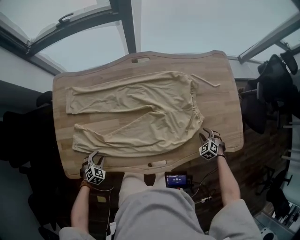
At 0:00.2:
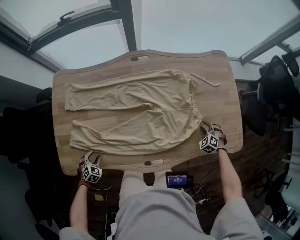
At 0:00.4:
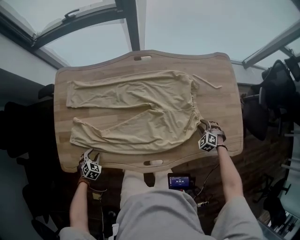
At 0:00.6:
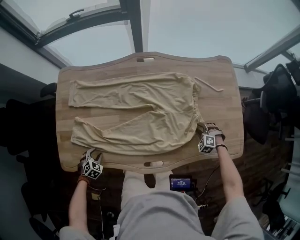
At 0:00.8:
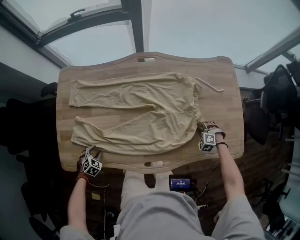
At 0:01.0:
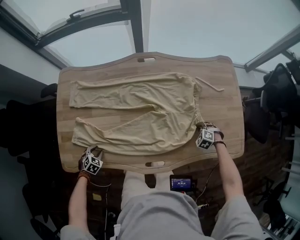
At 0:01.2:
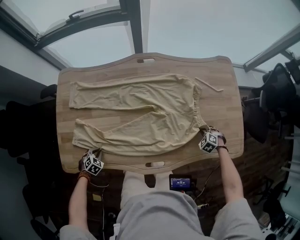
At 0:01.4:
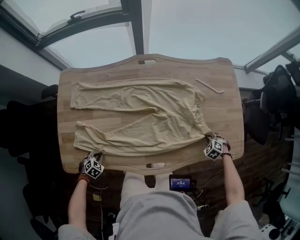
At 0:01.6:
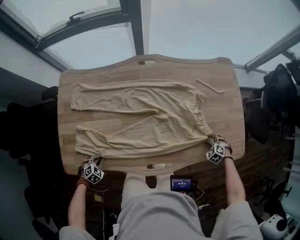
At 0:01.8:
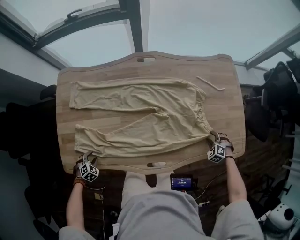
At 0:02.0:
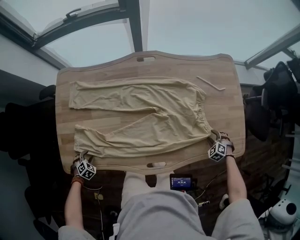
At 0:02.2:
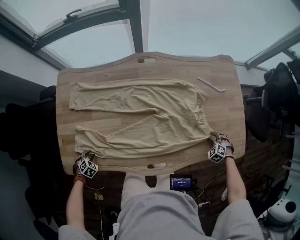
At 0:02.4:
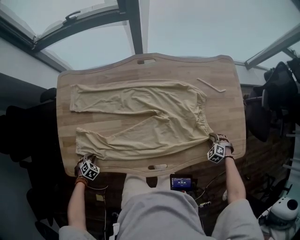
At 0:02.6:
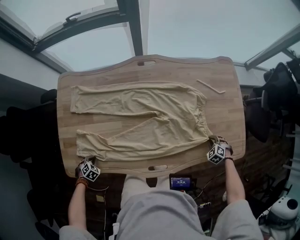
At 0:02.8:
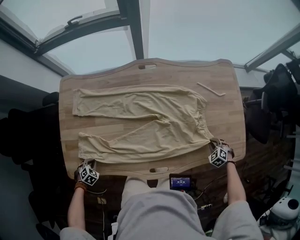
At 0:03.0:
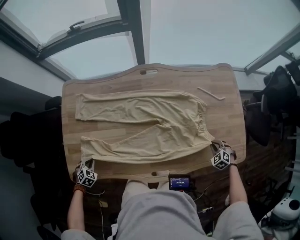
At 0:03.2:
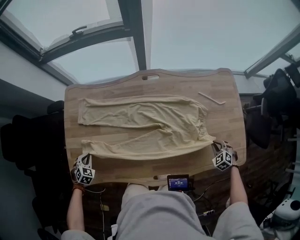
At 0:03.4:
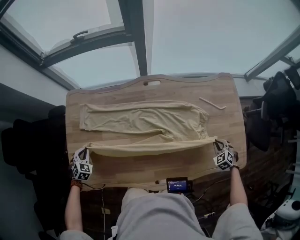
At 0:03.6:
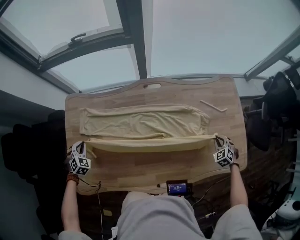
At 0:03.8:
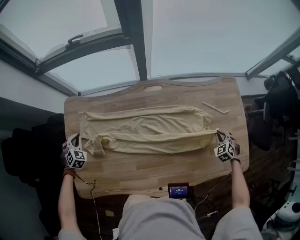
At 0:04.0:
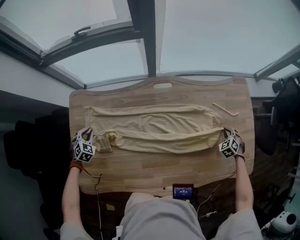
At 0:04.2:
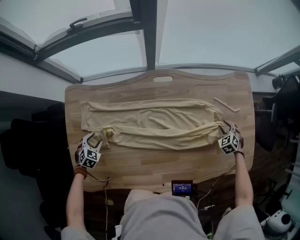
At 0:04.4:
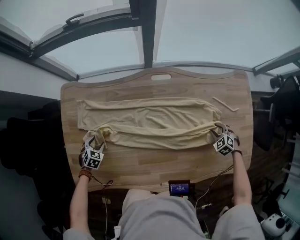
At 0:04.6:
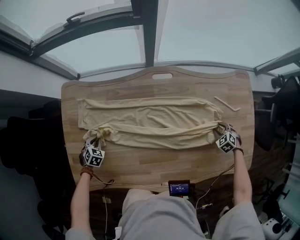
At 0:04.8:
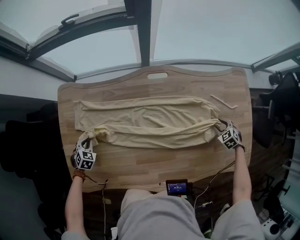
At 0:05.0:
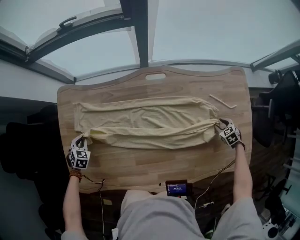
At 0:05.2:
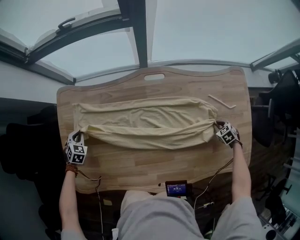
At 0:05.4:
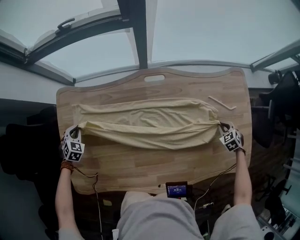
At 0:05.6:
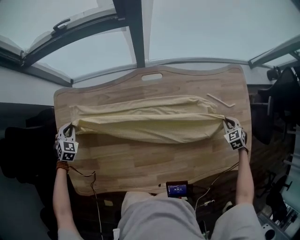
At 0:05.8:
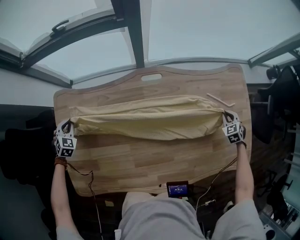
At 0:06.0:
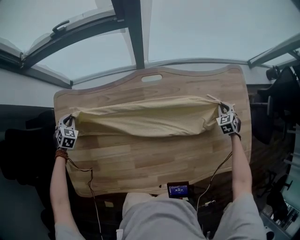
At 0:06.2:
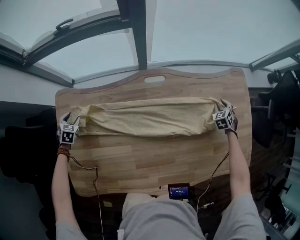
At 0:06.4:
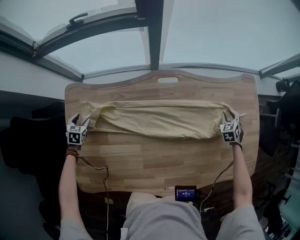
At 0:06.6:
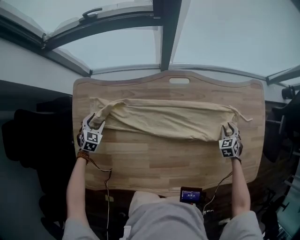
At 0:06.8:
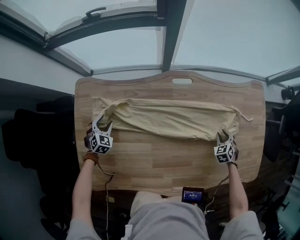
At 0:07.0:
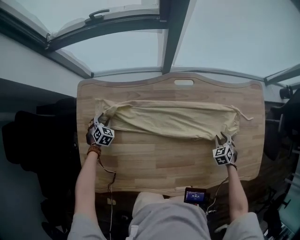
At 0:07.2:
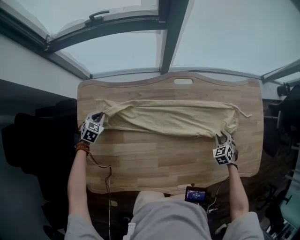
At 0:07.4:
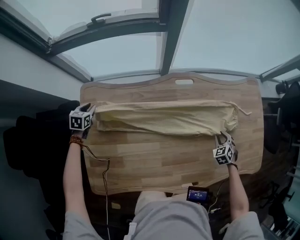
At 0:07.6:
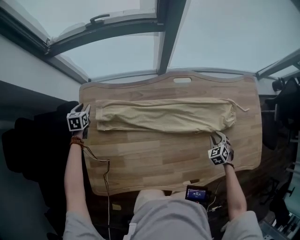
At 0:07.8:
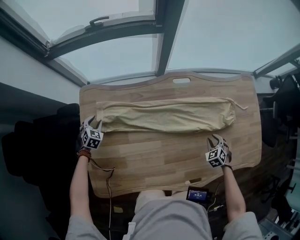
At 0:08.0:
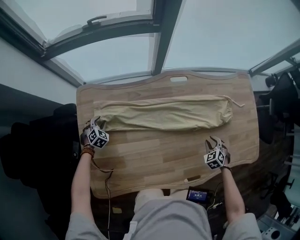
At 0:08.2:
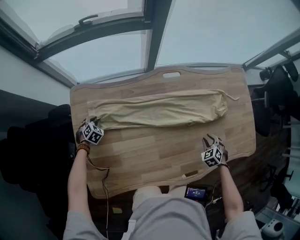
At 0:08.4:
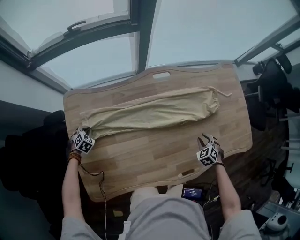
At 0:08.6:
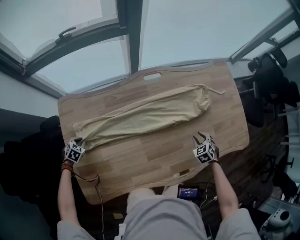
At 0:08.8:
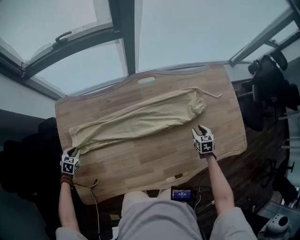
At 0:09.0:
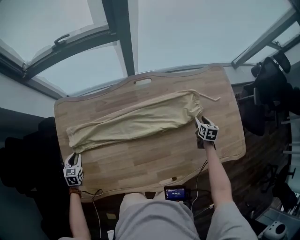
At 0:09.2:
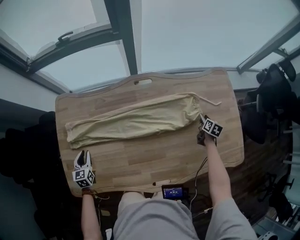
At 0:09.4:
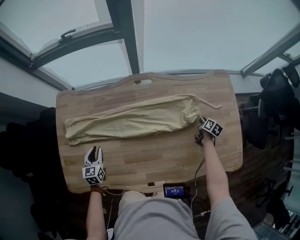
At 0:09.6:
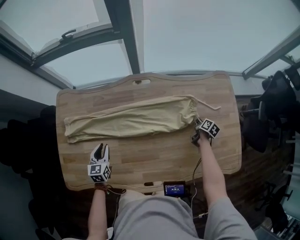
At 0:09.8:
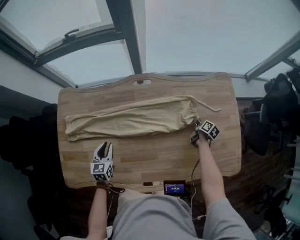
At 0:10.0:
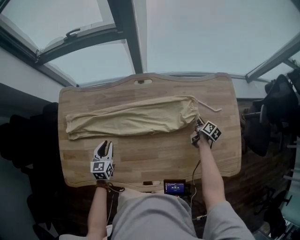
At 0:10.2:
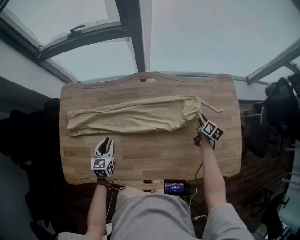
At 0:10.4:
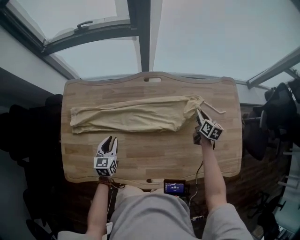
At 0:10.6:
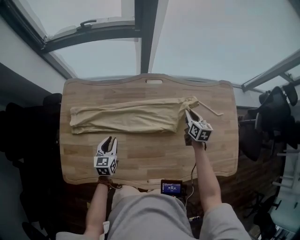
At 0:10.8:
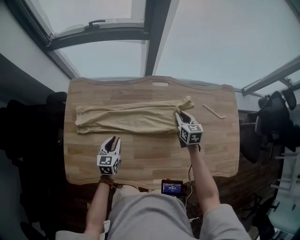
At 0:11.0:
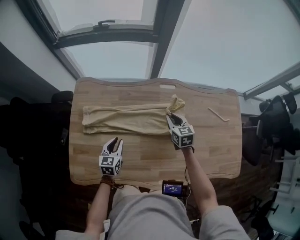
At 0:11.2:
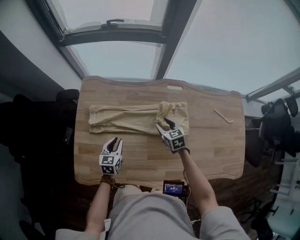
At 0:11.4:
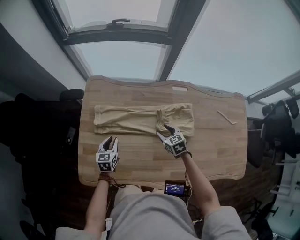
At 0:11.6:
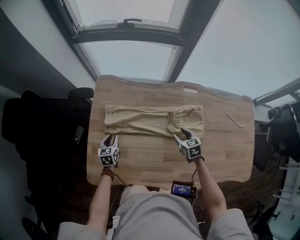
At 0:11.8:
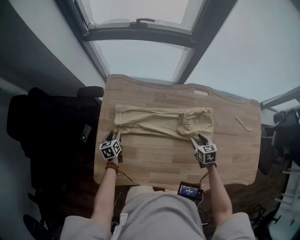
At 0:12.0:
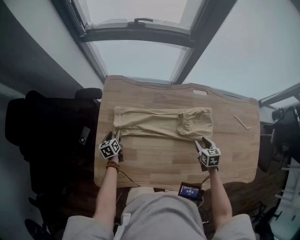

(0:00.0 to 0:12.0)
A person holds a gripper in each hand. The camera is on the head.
0:00.0 - 0:01.6: The left gripper closes, while the right gripper closes and opens again.
0:01.6 - 0:03.0: The right gripper is displaced upward by approximately 5 cm, and closes its fingers, while the left gripper ends up roughly 10 cm from where it was, and opens and closes again.
0:03.0 - 0:04.4: Both grippers move forward, about 20 cm. The right gripper opens its fingers. Meanwhile the left gripper opens.
0:04.4 - 0:06.0: The right gripper moves some 15 cm, swivels some 30 degrees, and closes its fingers. Meanwhile the left gripper ends up approximately 20 cm from where it was, and closes its fingers.
0:06.0 - 0:07.6: The left gripper moves to the left, approximately 15 cm, turns by approximately 40 degrees, and opens up; the right gripper travels to the left and backward by roughly 25 cm, and opens its fingers.
0:07.6 - 0:09.0: The right gripper is displaced to the right and forward by about 15 cm, and rolls clockwise, seen from behind, by some 60 degrees. The left gripper travels backward and to the right by about 25 cm.
0:09.0 - 0:10.4: The right gripper shifts approximately 10 cm forward and upward, turns by approximately 20 degrees, and closes; the left gripper moves to the right, approximately 25 cm, and rotates some 20 degrees.
0:10.4 - 0:12.0: Both grippers travel together to the left, about 35 cm. The right gripper changes its angle by roughly 40 degrees, and opens. Meanwhile the left gripper turns by about 30 degrees, and opens its fingers.

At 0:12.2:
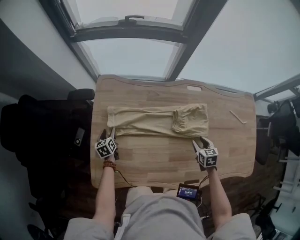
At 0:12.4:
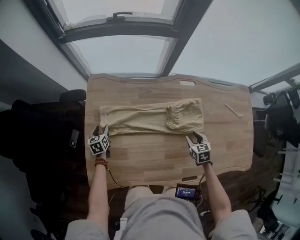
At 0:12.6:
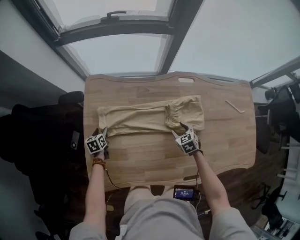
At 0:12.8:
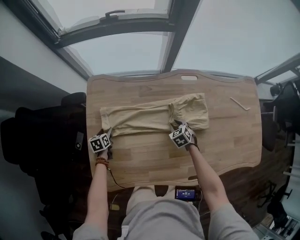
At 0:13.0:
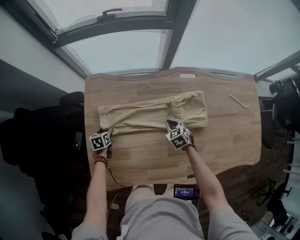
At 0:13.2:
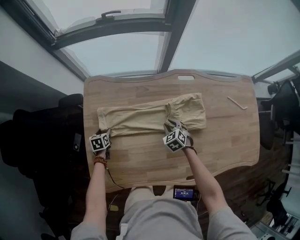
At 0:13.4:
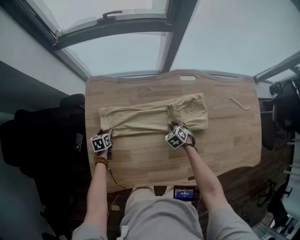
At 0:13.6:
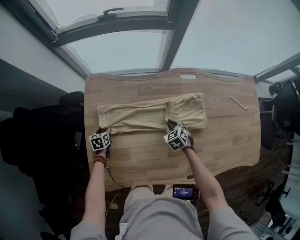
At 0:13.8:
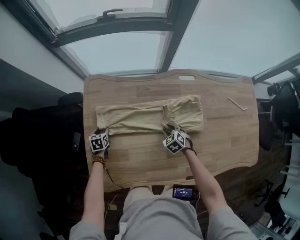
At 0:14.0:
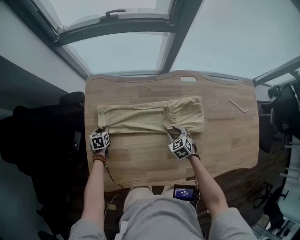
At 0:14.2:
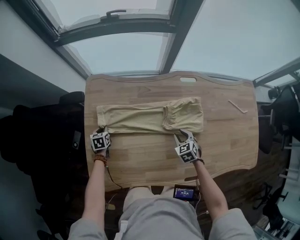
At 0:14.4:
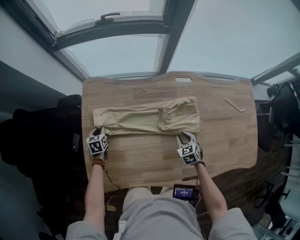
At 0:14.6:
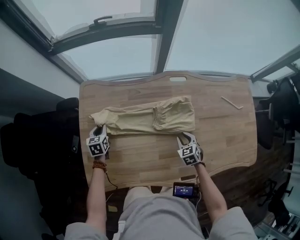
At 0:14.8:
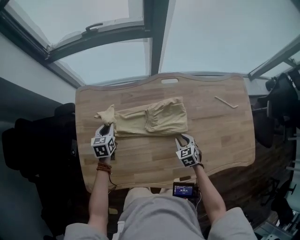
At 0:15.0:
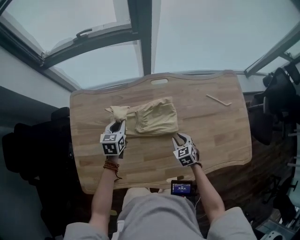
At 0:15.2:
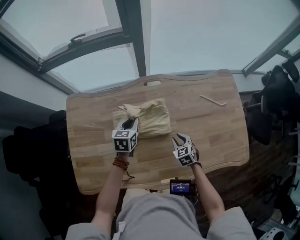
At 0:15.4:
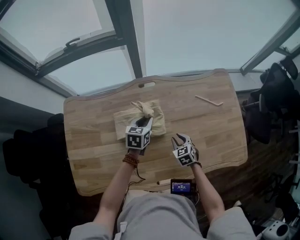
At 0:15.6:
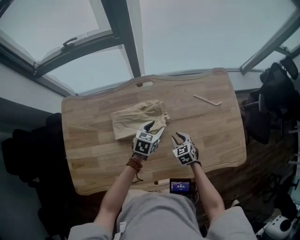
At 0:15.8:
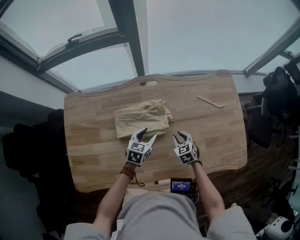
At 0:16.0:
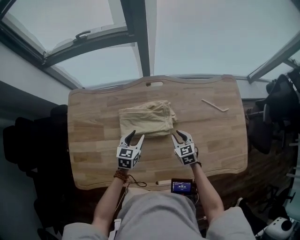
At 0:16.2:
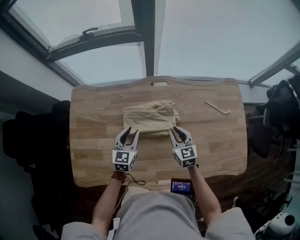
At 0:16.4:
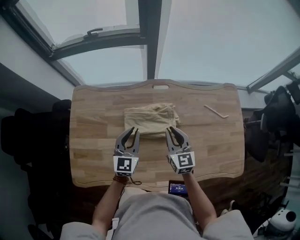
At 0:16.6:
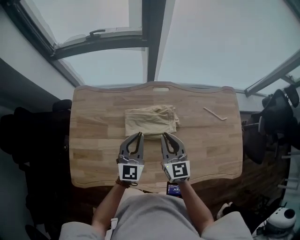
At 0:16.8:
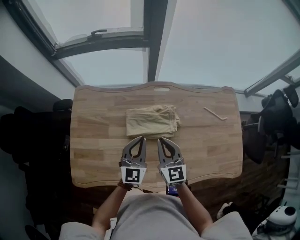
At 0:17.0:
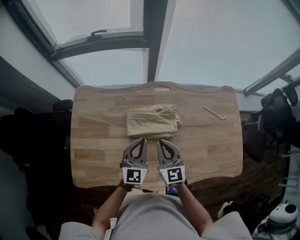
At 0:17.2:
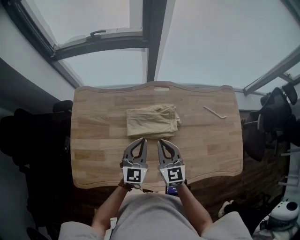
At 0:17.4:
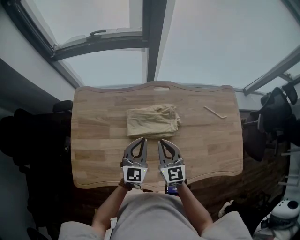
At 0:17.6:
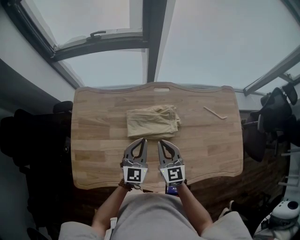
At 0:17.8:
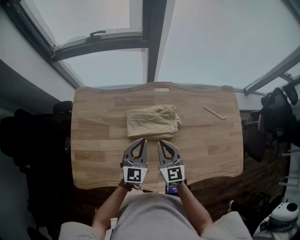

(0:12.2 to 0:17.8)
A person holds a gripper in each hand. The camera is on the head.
0:12.2 - 0:13.6: The left gripper turns by approximately 20 degrees. Meanwhile the right gripper moves to the left, forward and downward, roughly 15 cm, rotates approximately 20 degrees, and closes its fingers.
0:13.6 - 0:15.0: The right gripper travels to the right and backward by about 20 cm, while the left gripper travels to the right and upward by approximately 35 cm, turns by approximately 30 degrees, and closes its fingers.
0:15.0 - 0:16.4: The right gripper travels upward by roughly 20 cm, and points its fingers some 40 degrees further upward; the left gripper is displaced upward, to the right and backward by roughly 15 cm, changes its angle by some 30 degrees, and opens, then closes once more.
0:16.4 - 0:17.8: The right gripper shifts approximately 10 cm to the left and backward.

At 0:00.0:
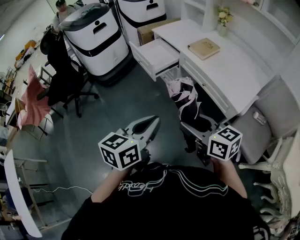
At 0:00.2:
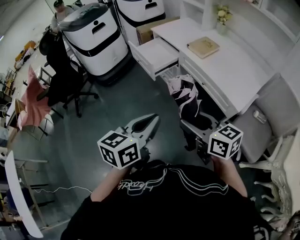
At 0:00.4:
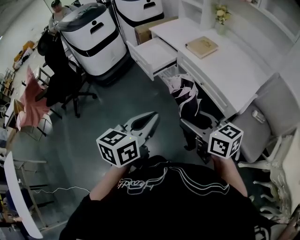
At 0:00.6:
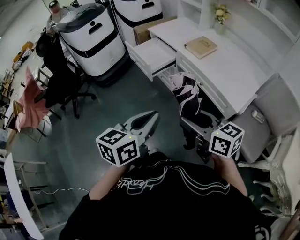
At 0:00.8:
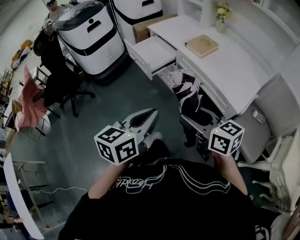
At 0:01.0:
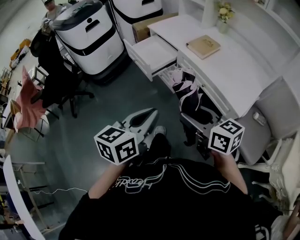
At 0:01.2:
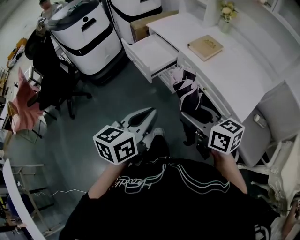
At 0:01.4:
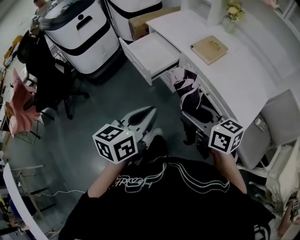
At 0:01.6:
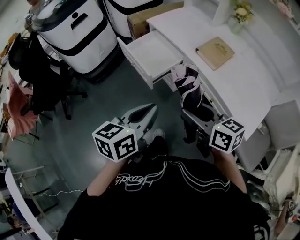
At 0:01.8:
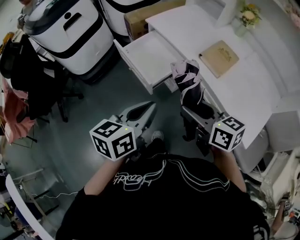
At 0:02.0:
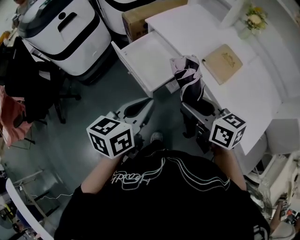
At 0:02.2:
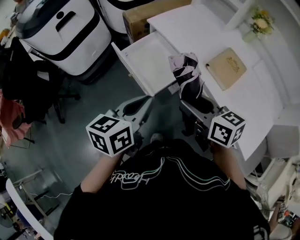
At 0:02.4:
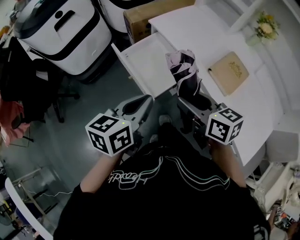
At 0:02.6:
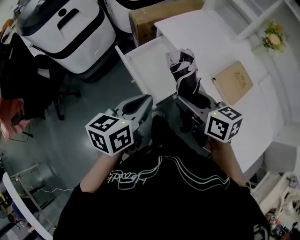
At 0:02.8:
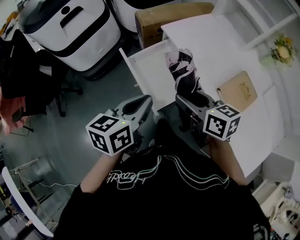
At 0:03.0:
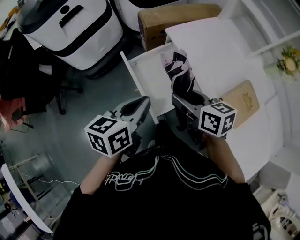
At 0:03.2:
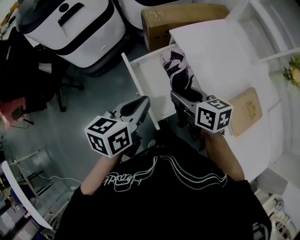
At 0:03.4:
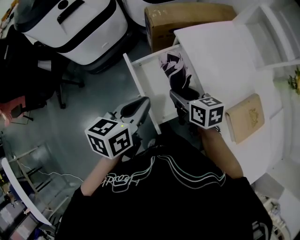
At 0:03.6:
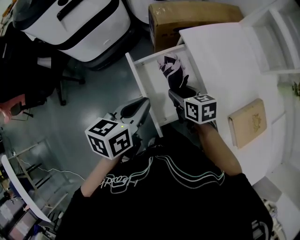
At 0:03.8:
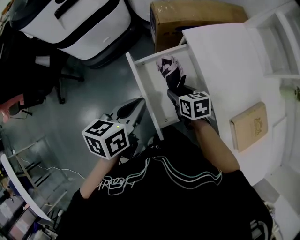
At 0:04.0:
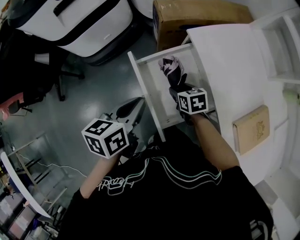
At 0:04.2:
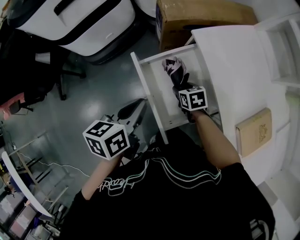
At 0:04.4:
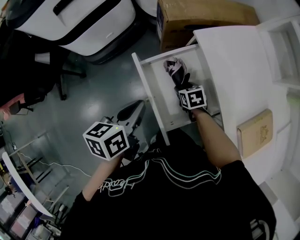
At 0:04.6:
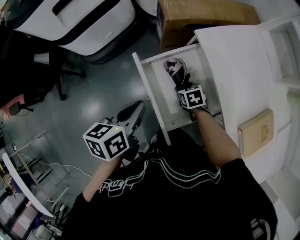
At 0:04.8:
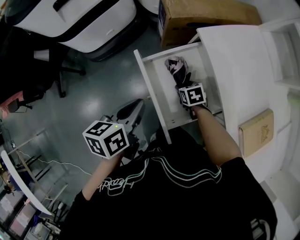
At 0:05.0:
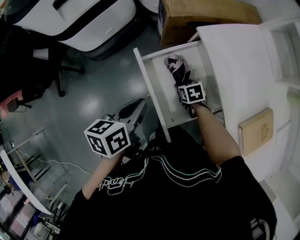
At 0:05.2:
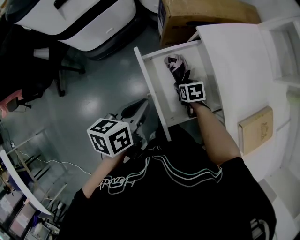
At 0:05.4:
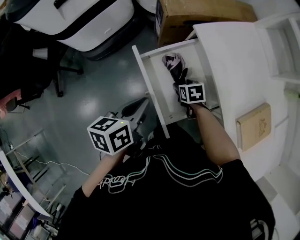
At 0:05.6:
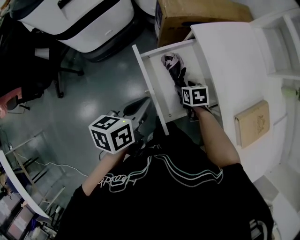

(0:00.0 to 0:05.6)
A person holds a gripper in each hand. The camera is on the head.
0:00.0 - 0:01.4: The two grippers go some 20 cm forward.
0:01.4 - 0:02.8: The two grippers travel together, forward, some 40 cm.
0:02.8 - 0:04.2: The right gripper is displaced downward and forward by some 35 cm, and tilts its fingers some 30 degrees downward, while the left gripper moves forward, downward and to the left, some 20 cm.
0:04.2 - 0:05.6: The grippers make only small movements.
